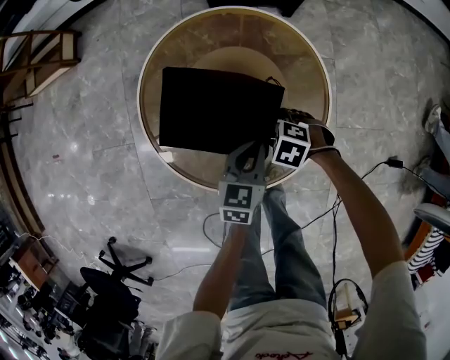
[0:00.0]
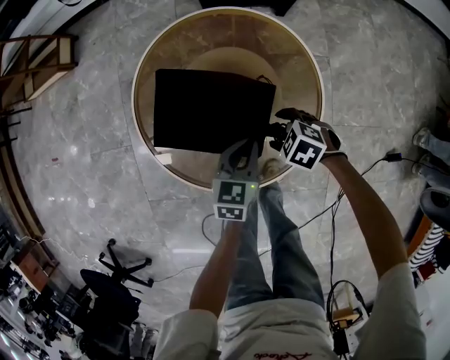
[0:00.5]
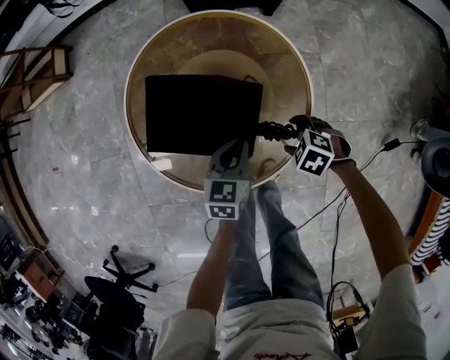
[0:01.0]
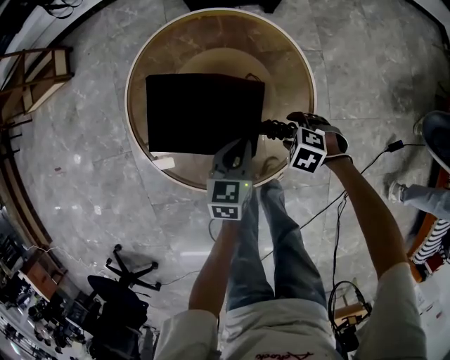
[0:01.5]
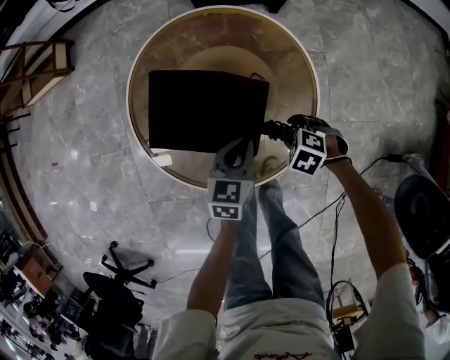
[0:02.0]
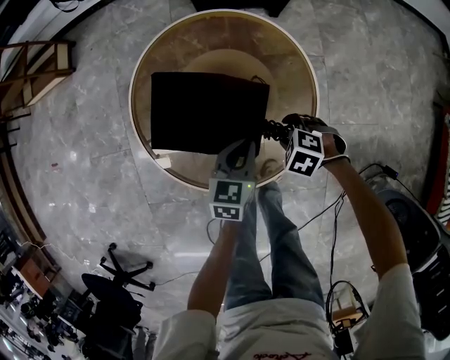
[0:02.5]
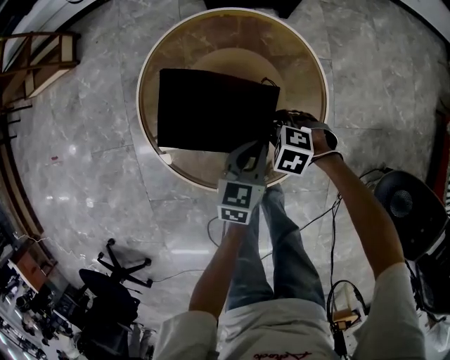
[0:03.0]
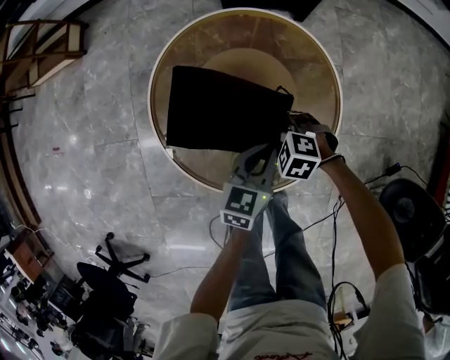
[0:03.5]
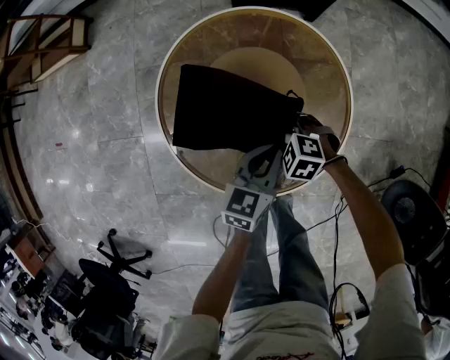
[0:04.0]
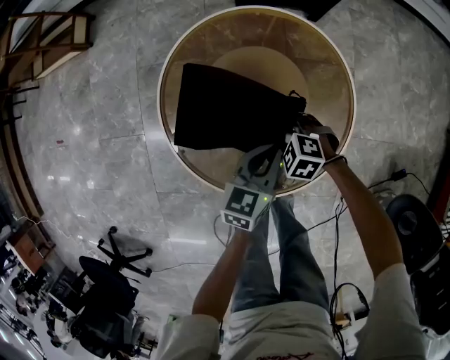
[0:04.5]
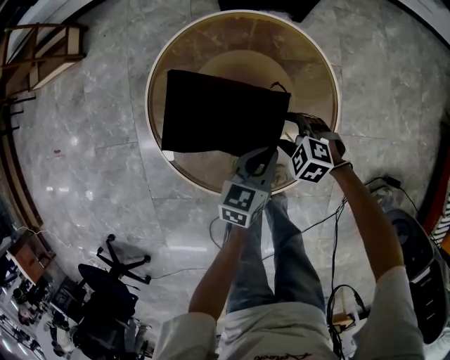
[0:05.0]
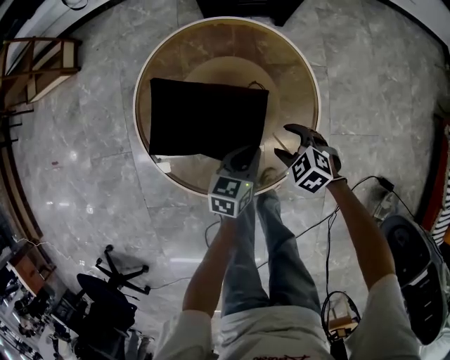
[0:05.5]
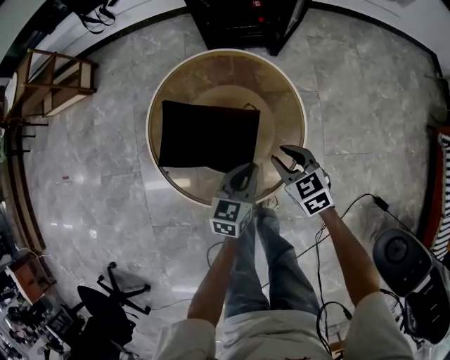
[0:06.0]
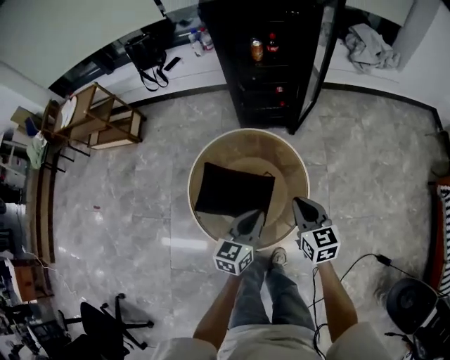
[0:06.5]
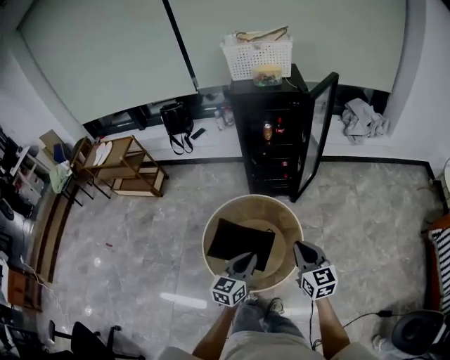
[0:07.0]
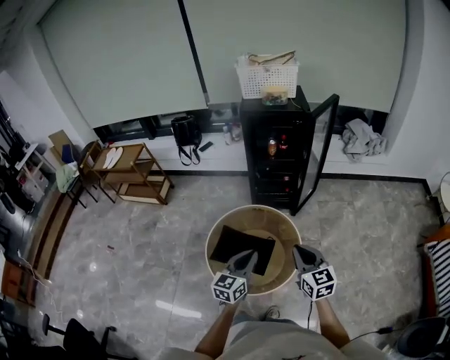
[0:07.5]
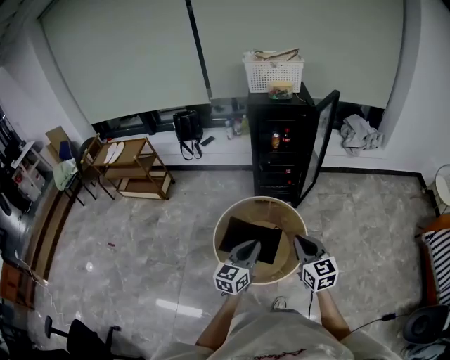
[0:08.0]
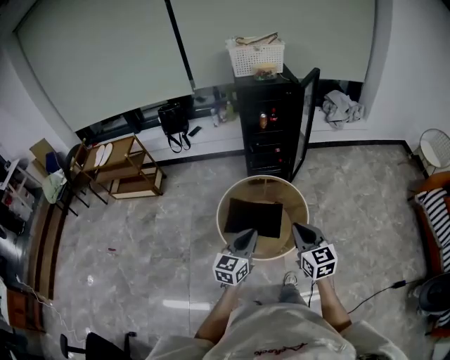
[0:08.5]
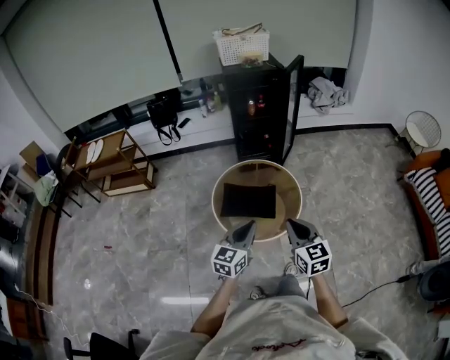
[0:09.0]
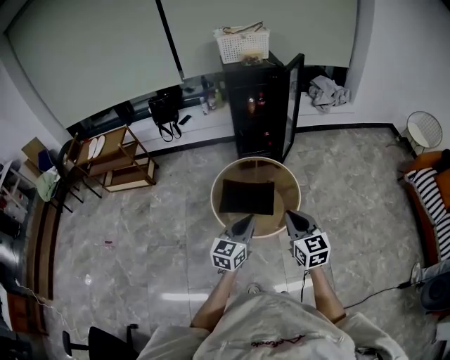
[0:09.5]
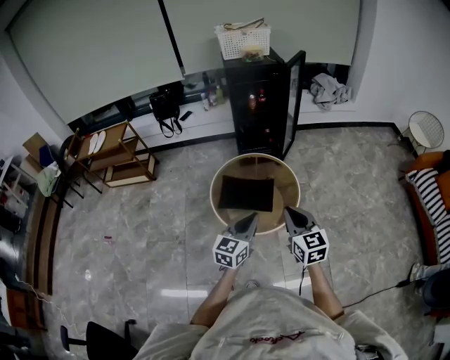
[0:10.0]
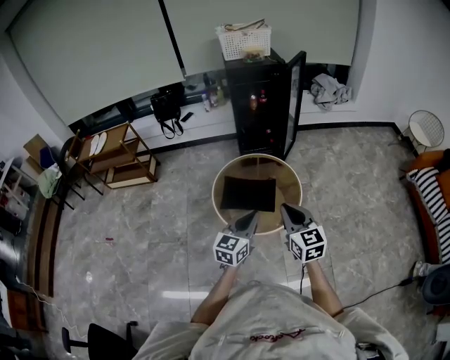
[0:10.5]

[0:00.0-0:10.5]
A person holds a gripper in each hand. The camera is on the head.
0:00.0 to 0:02.0: The right gripper moves about 10 cm.
0:02.0 to 0:04.0: The right gripper shifts by some 15 cm.
0:04.0 to 0:06.5: The right gripper is displaced upward and to the right by approximately 35 cm, points its fingers some 40 degrees further upward, and closes its fingers, while the left gripper is displaced upward by approximately 20 cm.
0:06.5 to 0:08.5: Both grippers move upward, backward and to the left, approximately 30 cm.
0:08.5 to 0:10.5: Both grippers travel together backward, roughly 10 cm.

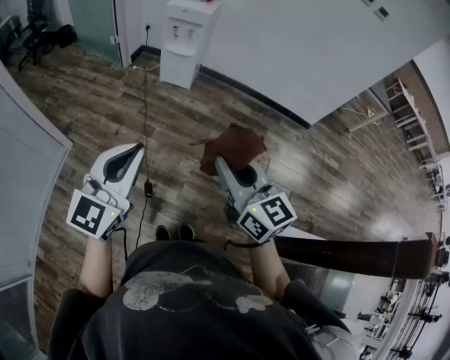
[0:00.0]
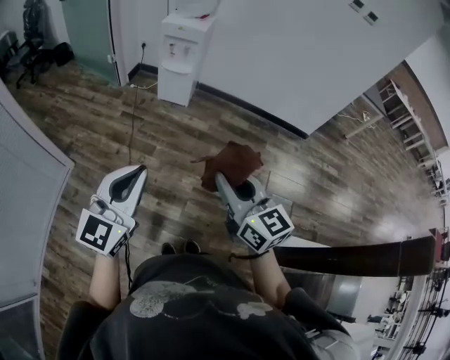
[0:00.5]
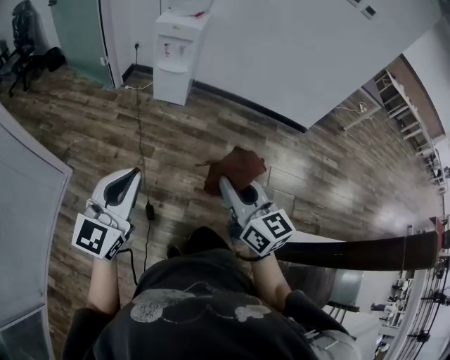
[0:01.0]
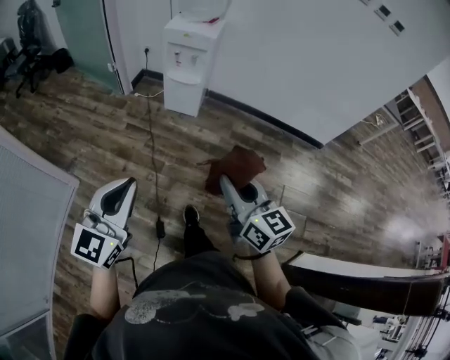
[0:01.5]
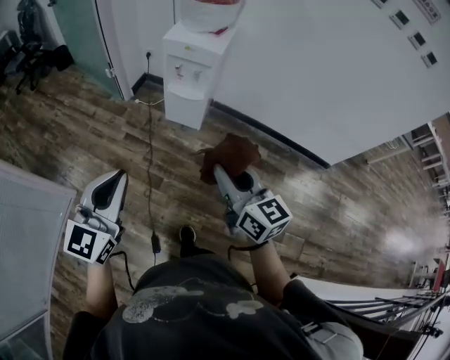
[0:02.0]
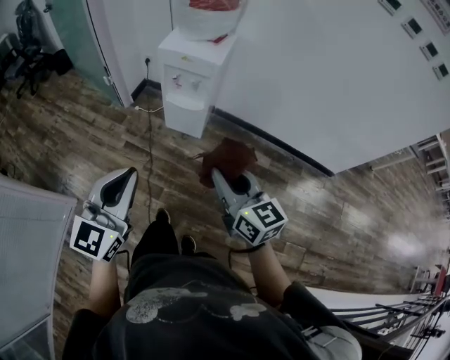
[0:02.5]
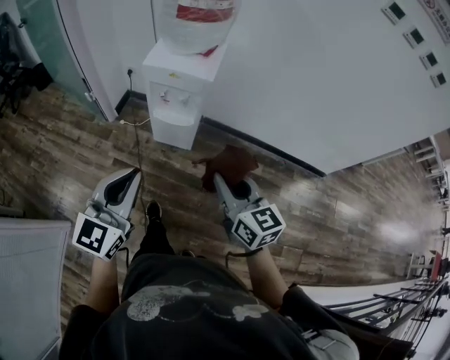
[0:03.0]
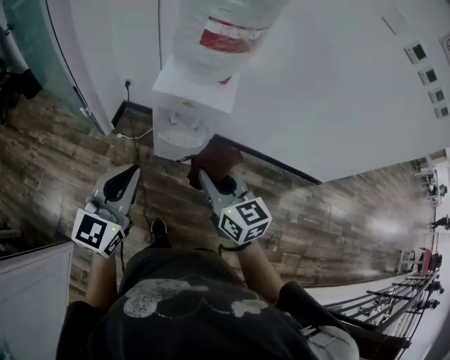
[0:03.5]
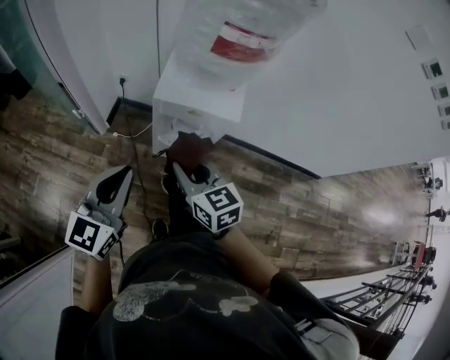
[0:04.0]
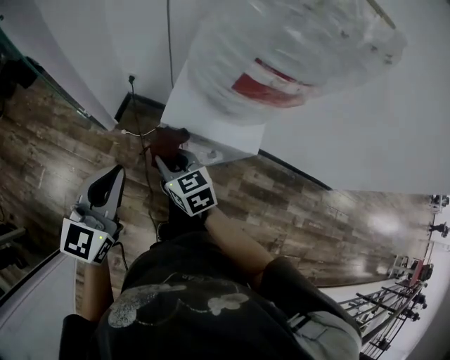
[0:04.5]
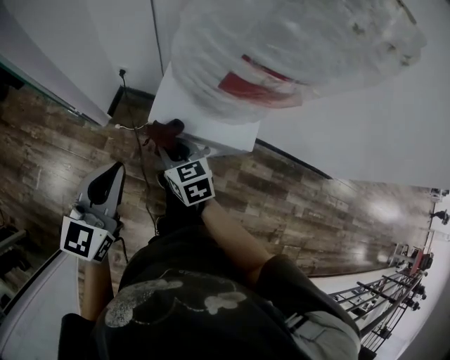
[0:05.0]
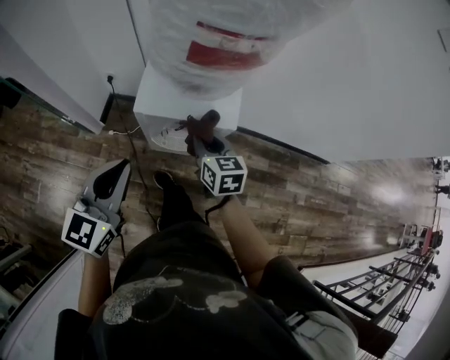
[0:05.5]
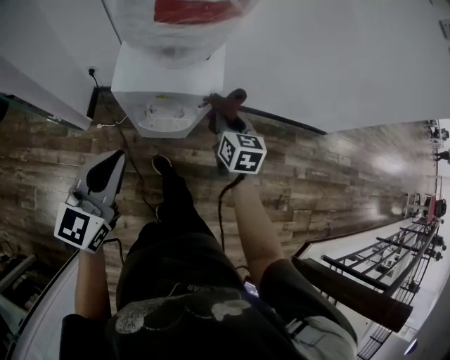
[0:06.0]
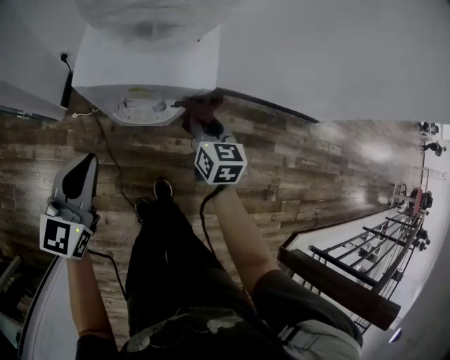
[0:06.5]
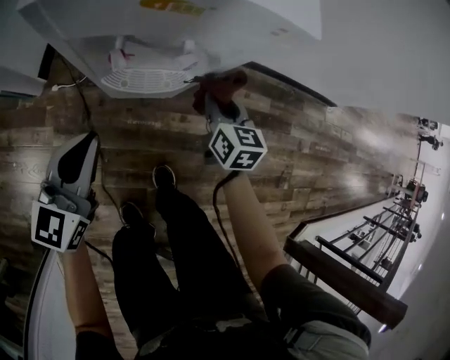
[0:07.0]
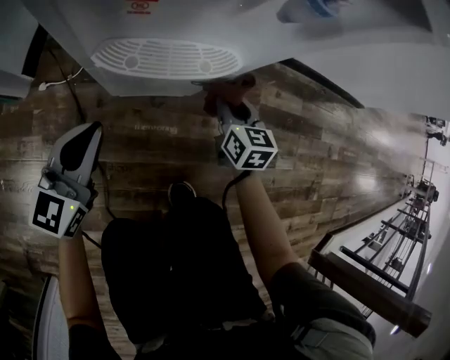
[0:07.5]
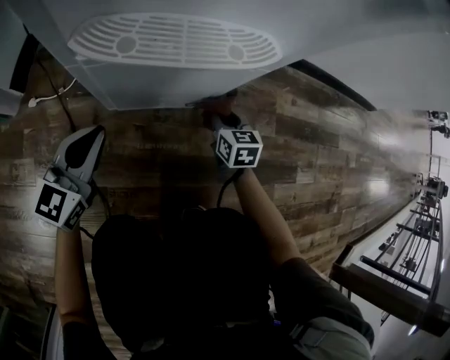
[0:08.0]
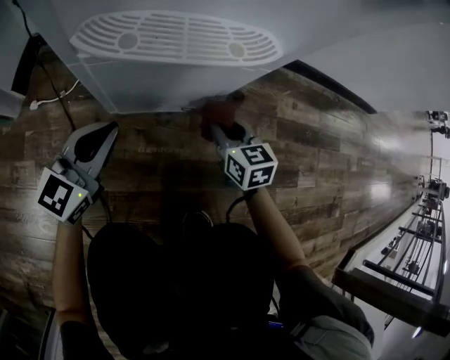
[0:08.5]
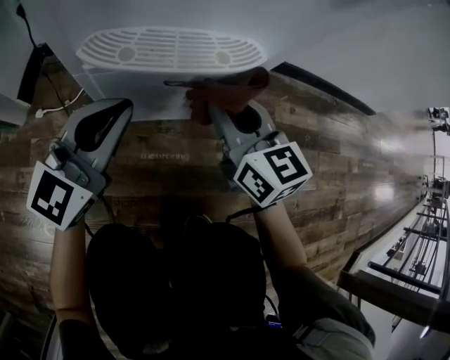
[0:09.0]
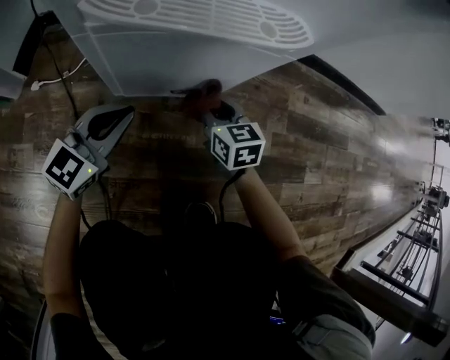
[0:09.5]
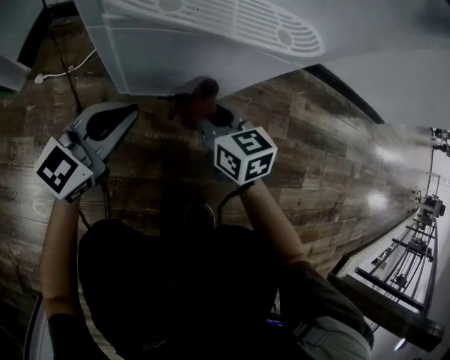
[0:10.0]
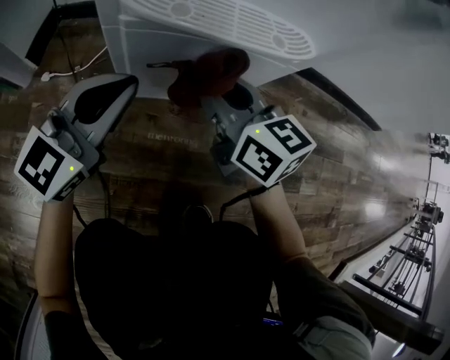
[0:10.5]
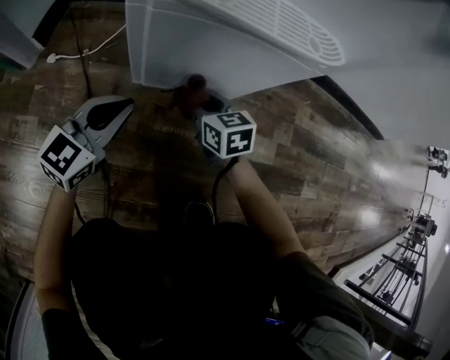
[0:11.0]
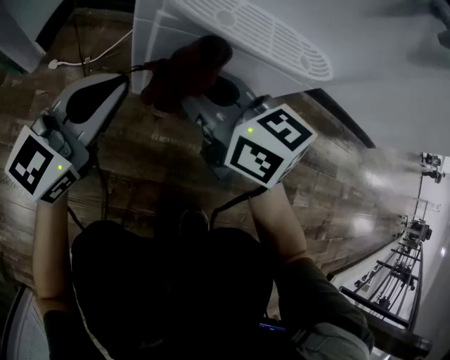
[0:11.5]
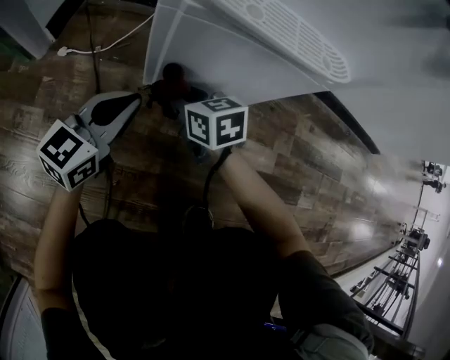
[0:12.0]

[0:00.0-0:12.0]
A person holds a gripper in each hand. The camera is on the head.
0:00.0 to 0:02.0: The two grippers go about 35 cm forward.
0:02.0 to 0:04.0: Both grippers are carried forward, approximately 40 cm.
0:04.0 to 0:06.0: The left gripper ends up roughly 10 cm from where it was, while the right gripper changes place by some 25 cm, and swivels some 30 degrees.
0:06.0 to 0:08.0: Both grippers travel together downward, approximately 60 cm.
0:08.0 to 0:10.0: The left gripper moves roughly 10 cm upward and comes back, while the right gripper goes up and down, roughly 25 cm each way, reversing 2 times, and turns by some 20 degrees.
0:10.0 to 0:12.0: The right gripper swings up and down, approximately 25 cm each way, with 3 reversals; the left gripper moves up and down over roughly 15 cm, changing direction 3 times.

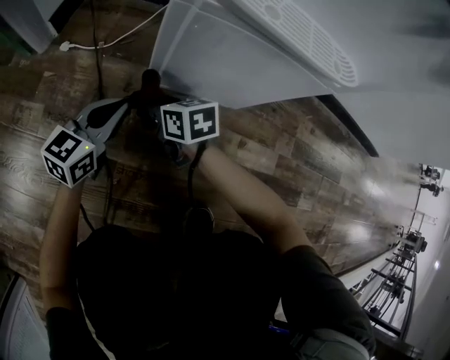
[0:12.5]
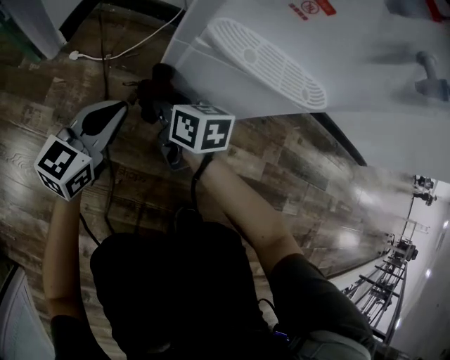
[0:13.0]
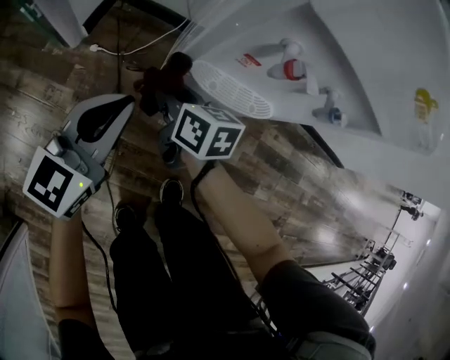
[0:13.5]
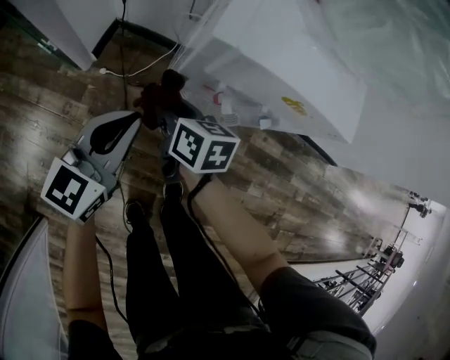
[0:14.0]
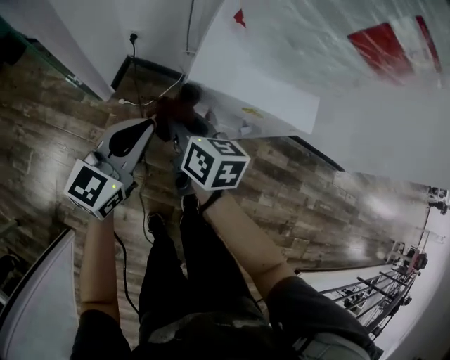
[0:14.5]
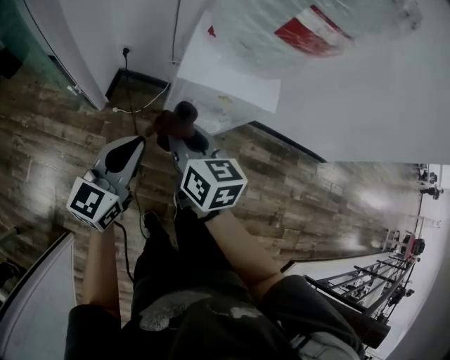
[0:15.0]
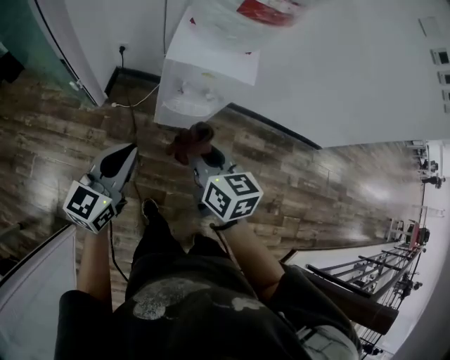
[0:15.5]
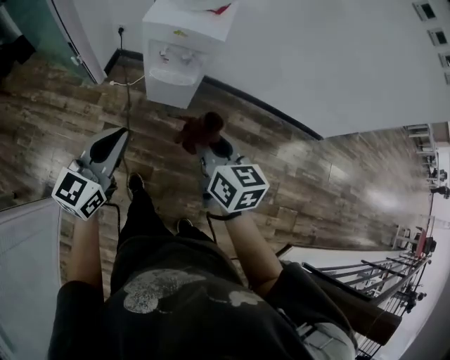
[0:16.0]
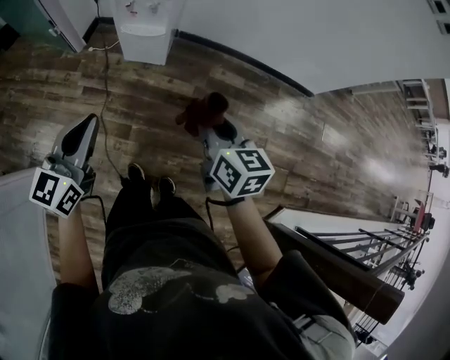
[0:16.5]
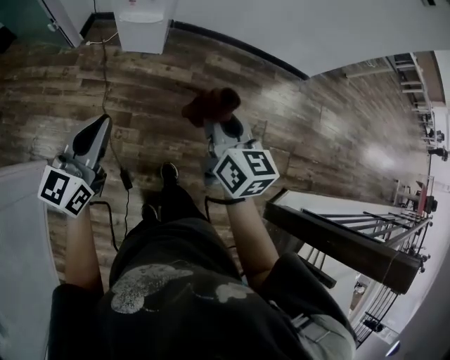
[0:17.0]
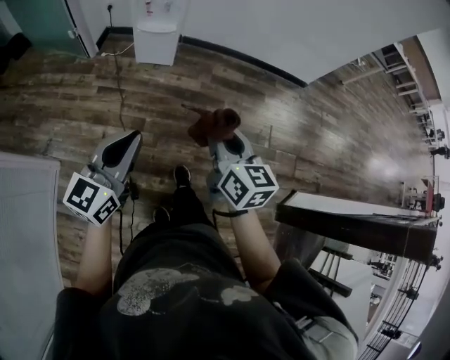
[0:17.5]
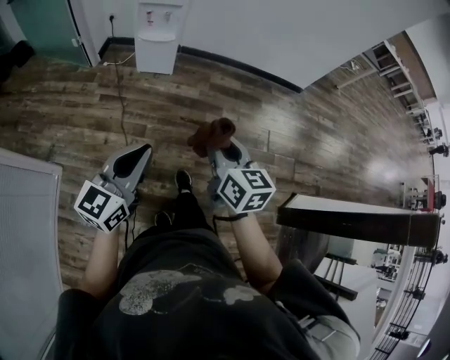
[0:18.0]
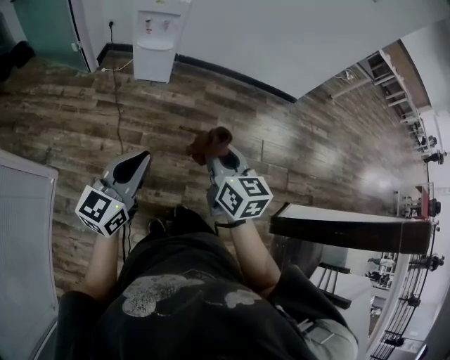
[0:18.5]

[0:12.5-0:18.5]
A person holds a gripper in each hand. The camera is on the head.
0:12.5 to 0:14.5: The grippers both shift upward by approximately 60 cm. The right gripper turns by approximately 20 degrees.
0:14.5 to 0:16.5: The pair of grippers is taken backward and to the right, roughly 50 cm.
0:16.5 to 0:18.5: The grippers both shift backward by roughly 30 cm.
